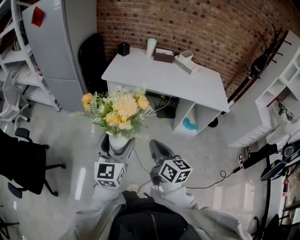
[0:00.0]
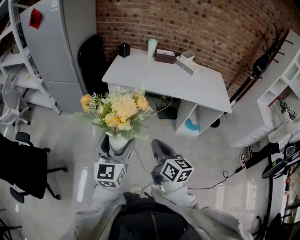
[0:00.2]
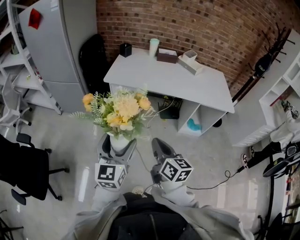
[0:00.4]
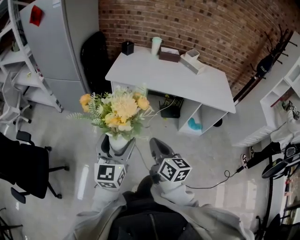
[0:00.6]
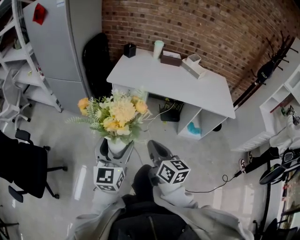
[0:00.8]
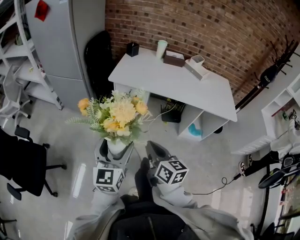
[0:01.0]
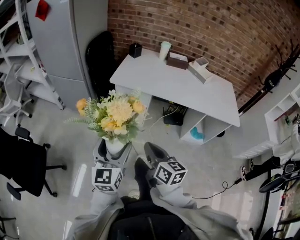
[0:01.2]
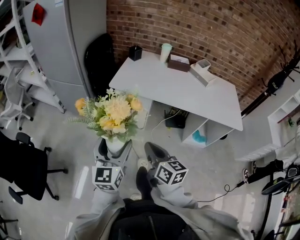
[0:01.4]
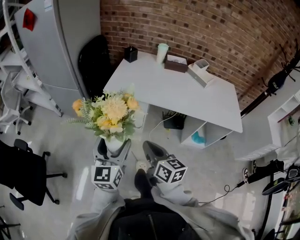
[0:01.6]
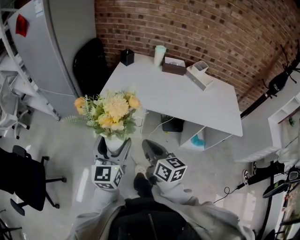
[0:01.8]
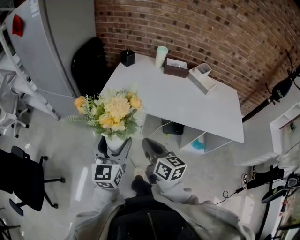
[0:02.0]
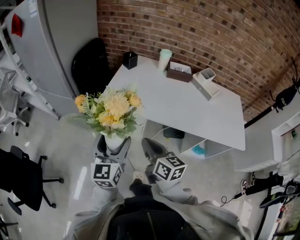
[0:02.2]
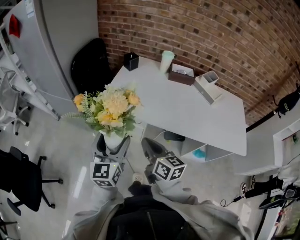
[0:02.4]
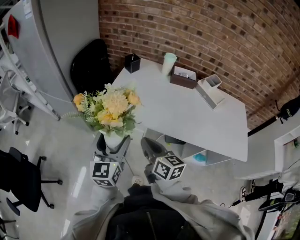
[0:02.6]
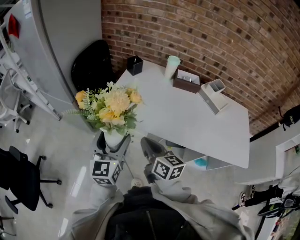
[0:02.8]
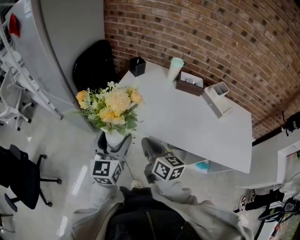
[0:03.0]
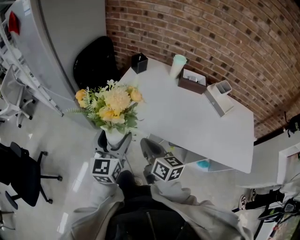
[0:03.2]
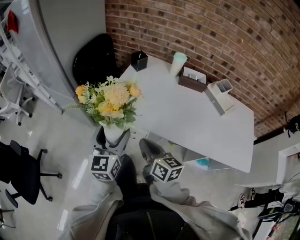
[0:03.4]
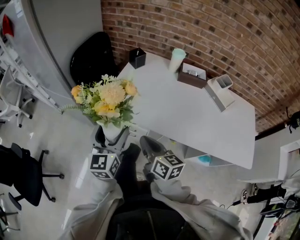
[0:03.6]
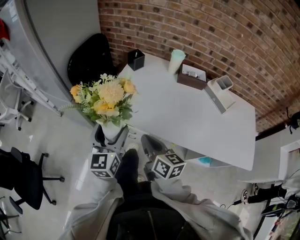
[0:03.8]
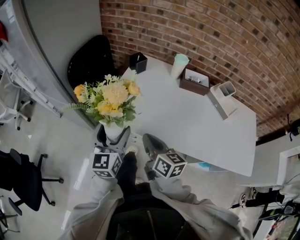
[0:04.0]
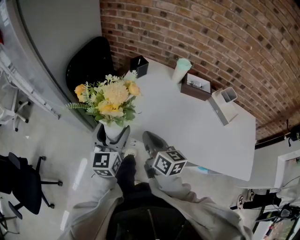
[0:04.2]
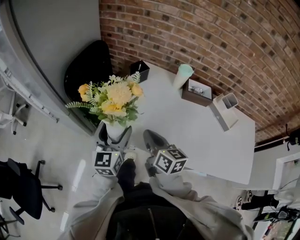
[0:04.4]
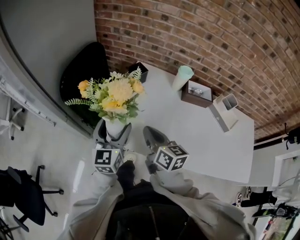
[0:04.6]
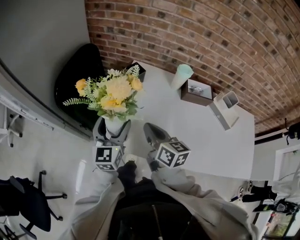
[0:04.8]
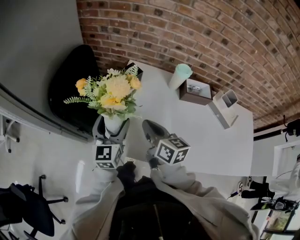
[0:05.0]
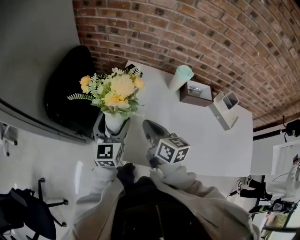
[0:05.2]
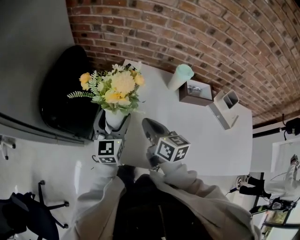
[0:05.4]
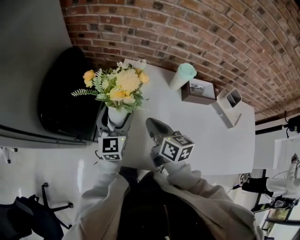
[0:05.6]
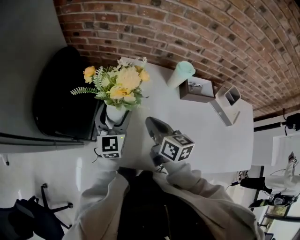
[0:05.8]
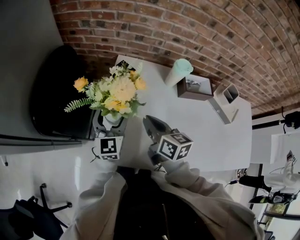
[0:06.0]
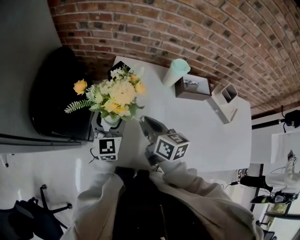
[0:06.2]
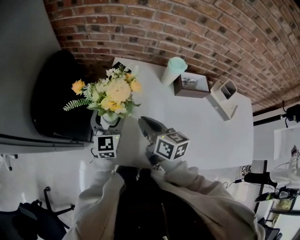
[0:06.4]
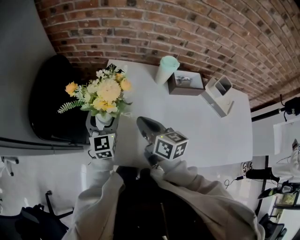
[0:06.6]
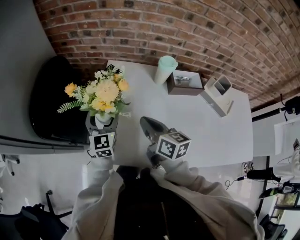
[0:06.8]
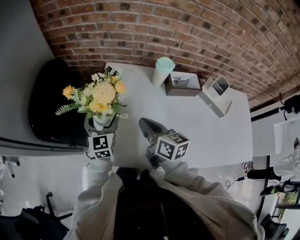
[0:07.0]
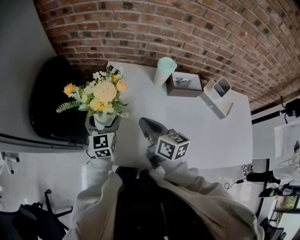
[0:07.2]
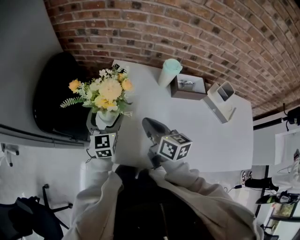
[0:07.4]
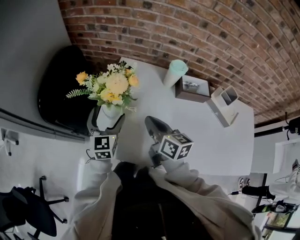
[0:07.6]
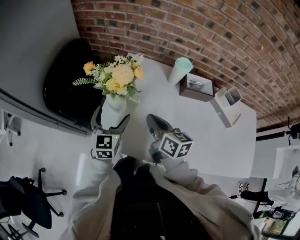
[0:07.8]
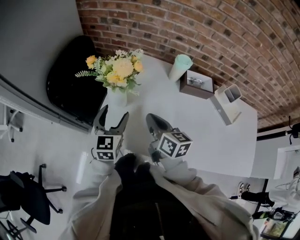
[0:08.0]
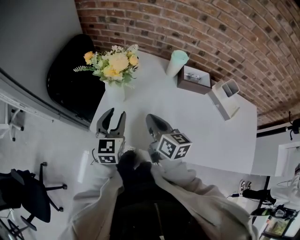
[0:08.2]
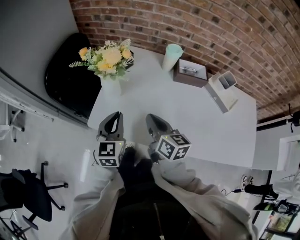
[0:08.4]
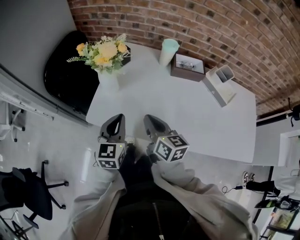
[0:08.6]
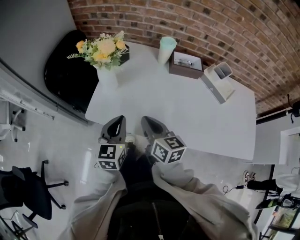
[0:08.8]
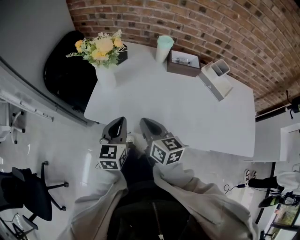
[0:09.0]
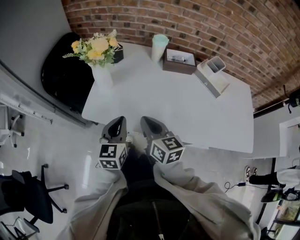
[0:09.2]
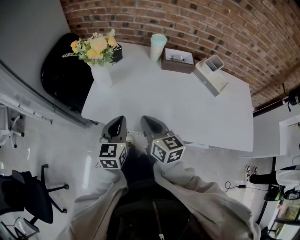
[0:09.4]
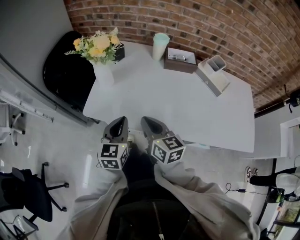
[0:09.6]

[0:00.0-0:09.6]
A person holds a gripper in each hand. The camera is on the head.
0:00.0 to 0:01.6: Both grippers travel together forward, approximately 20 cm.
0:01.6 to 0:03.2: The two grippers go some 25 cm forward.
0:03.2 to 0:04.8: The two grippers go approximately 30 cm forward.
0:04.8 to 0:06.4: The left gripper moves forward and downward, some 15 cm. Meanwhile the right gripper is displaced forward by roughly 10 cm.
0:06.4 to 0:08.0: The right gripper shifts some 10 cm backward, while the left gripper goes approximately 10 cm backward.
0:08.0 to 0:09.6: The right gripper shifts roughly 20 cm backward. The left gripper heads backward and to the right, covering roughly 20 cm, and closes.

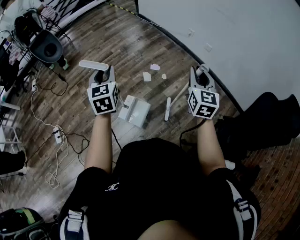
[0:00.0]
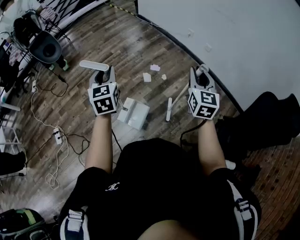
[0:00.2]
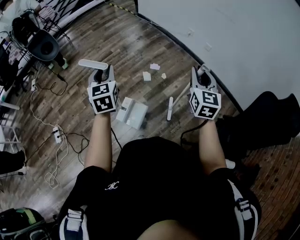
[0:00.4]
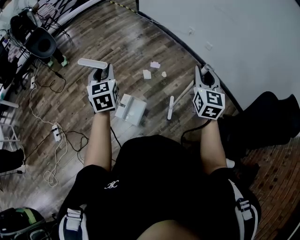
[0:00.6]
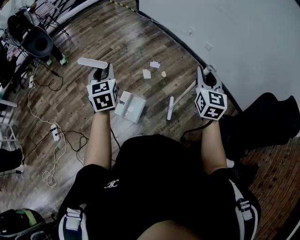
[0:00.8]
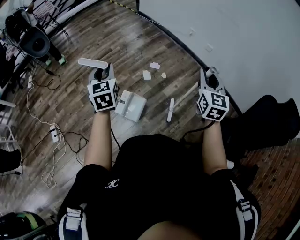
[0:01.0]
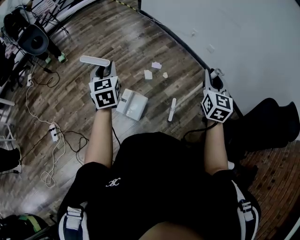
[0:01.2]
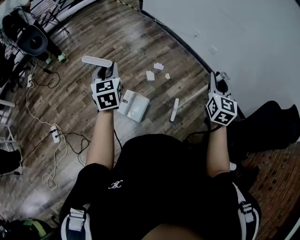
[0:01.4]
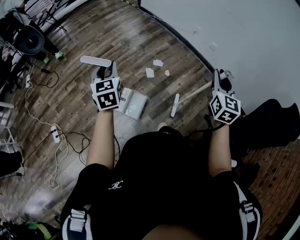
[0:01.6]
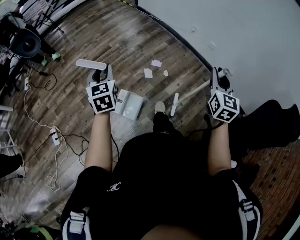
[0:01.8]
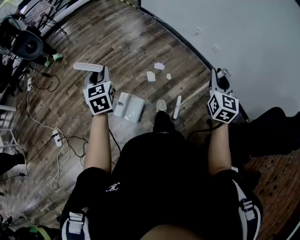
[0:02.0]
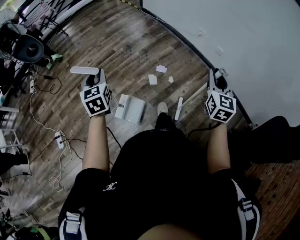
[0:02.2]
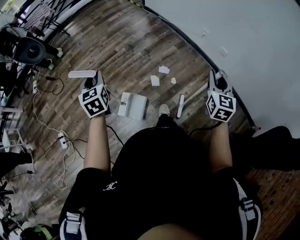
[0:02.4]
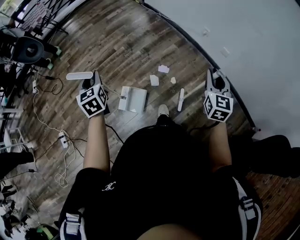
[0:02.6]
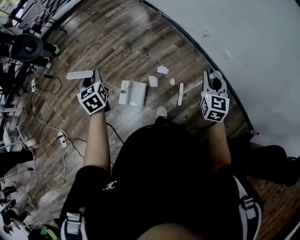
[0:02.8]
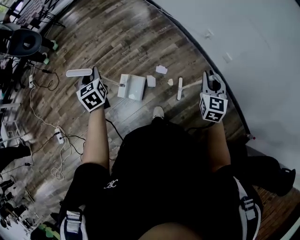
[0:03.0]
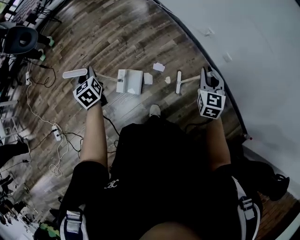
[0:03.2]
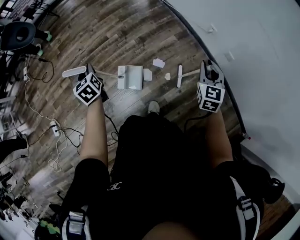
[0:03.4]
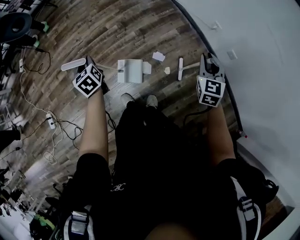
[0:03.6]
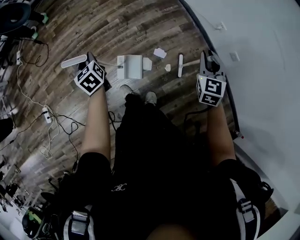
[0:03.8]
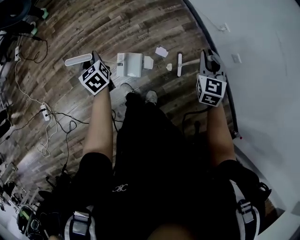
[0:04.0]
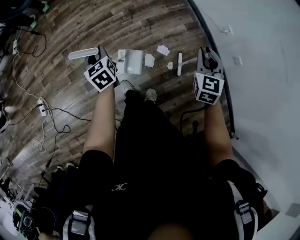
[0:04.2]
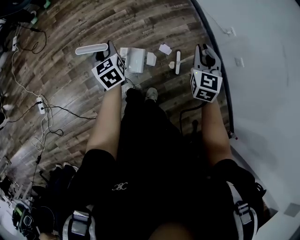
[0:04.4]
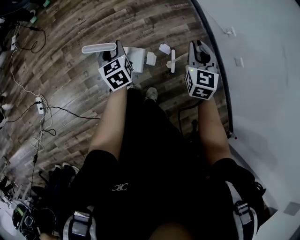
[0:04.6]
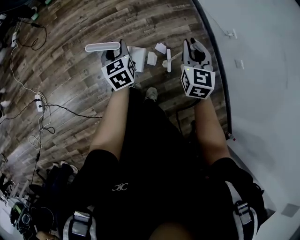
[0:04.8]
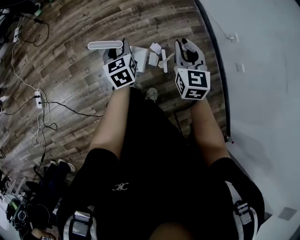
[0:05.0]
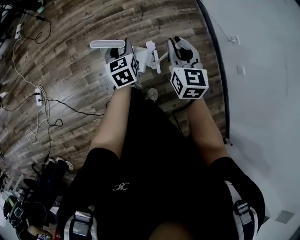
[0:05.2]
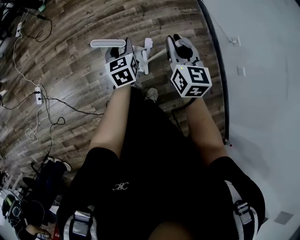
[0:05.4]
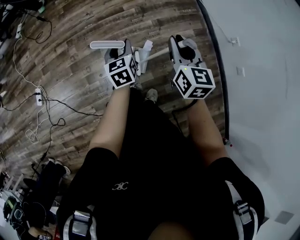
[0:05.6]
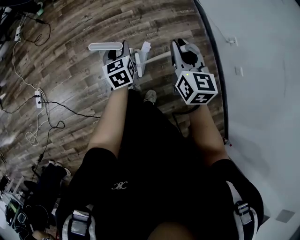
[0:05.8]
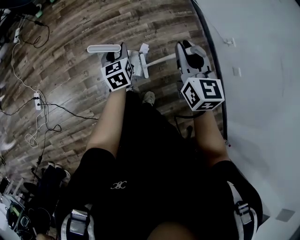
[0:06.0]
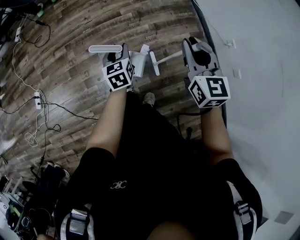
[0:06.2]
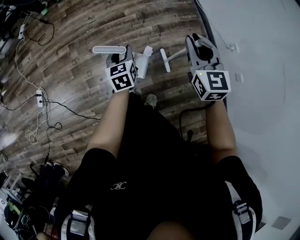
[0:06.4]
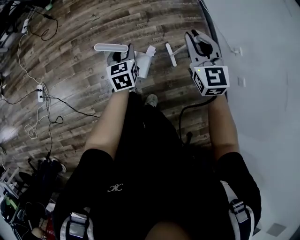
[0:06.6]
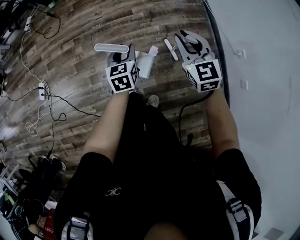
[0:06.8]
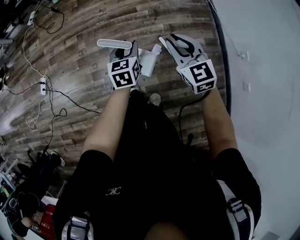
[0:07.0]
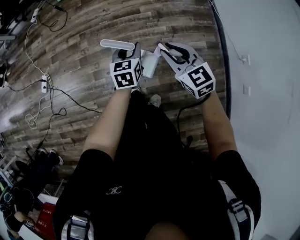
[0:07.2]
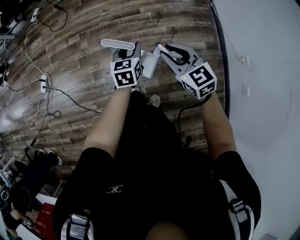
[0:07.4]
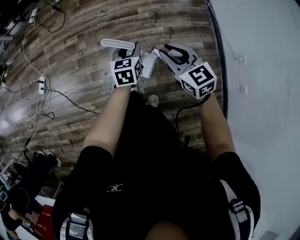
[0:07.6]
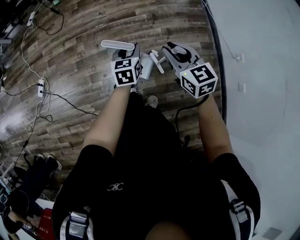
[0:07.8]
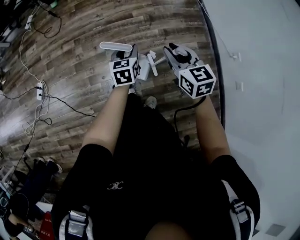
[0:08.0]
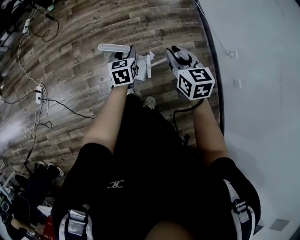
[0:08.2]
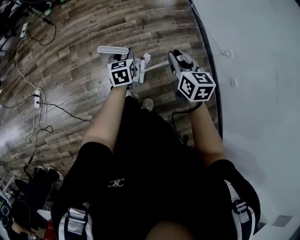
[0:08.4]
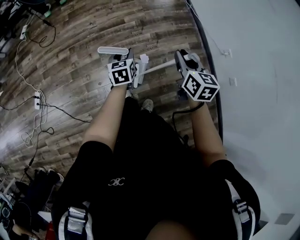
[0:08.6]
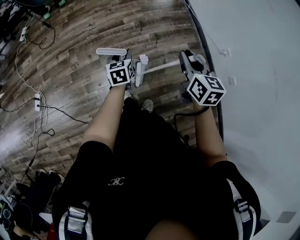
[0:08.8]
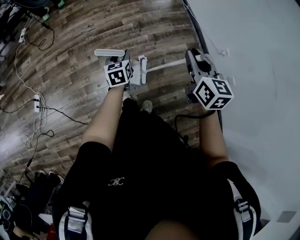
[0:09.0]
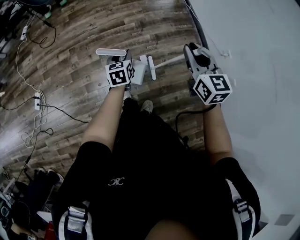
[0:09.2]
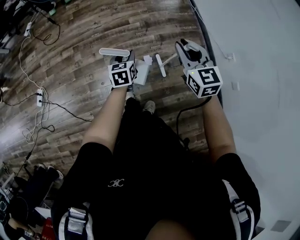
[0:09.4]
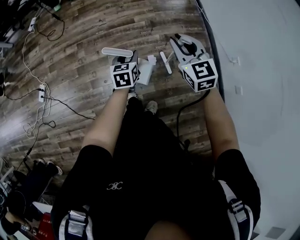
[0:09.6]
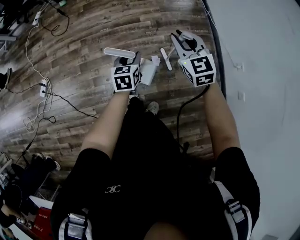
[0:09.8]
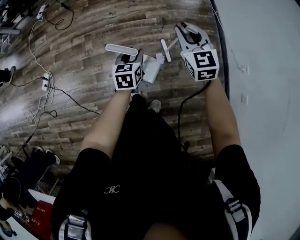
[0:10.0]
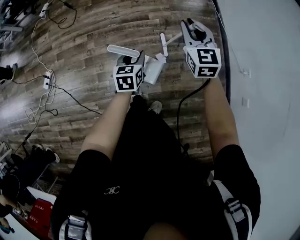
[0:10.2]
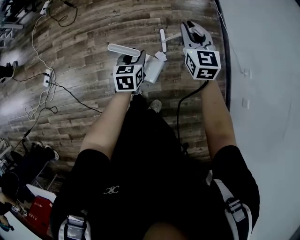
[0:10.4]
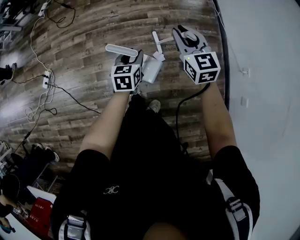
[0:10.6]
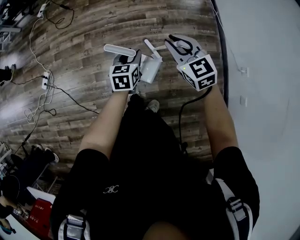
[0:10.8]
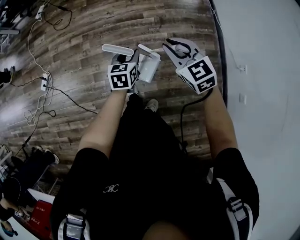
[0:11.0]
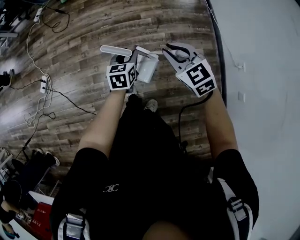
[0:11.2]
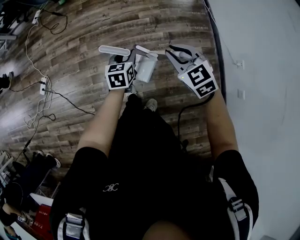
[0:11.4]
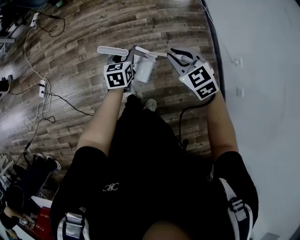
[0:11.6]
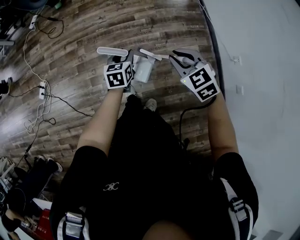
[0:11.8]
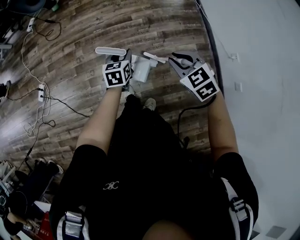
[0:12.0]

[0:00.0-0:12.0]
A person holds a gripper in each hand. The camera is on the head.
0:00.0 to 0:01.6: The left gripper heads to the left and forward, covering roughly 10 cm.
0:01.6 to 0:03.0: The right gripper moves forward and downward, roughly 35 cm, while the left gripper is displaced forward by roughly 30 cm, and changes its angle by roughly 20 degrees.
0:03.0 to 0:04.4: The left gripper travels downward and forward by some 20 cm. Meanwhile the right gripper is displaced forward, to the left and downward by some 25 cm.
0:04.4 to 0:06.0: The right gripper is displaced to the left and upward by approximately 15 cm, and rotates approximately 30 degrees.
0:06.0 to 0:07.6: The right gripper goes some 10 cm to the left and downward, and turns by approximately 40 degrees.
0:07.6 to 0:09.0: The right gripper is displaced to the right and upward by approximately 15 cm, and swivels some 40 degrees.
0:09.0 to 0:10.4: The right gripper goes some 20 cm forward, downward and to the left, and rotates about 20 degrees.
0:10.4 to 0:12.0: The right gripper heads backward, covering approximately 15 cm, and turns by approximately 40 degrees.

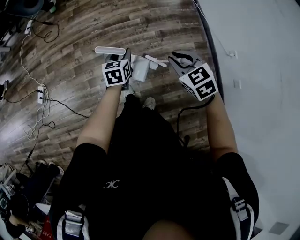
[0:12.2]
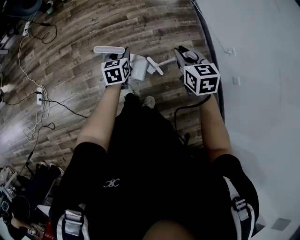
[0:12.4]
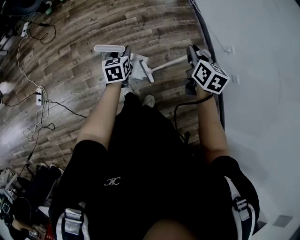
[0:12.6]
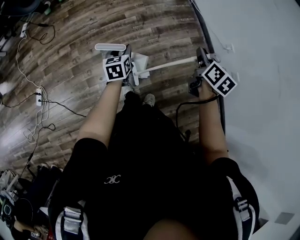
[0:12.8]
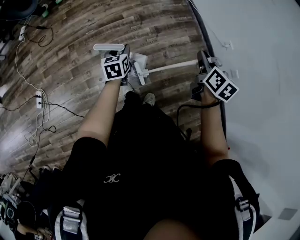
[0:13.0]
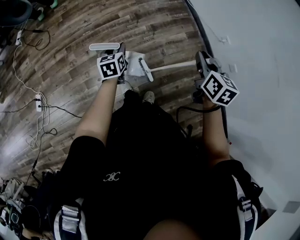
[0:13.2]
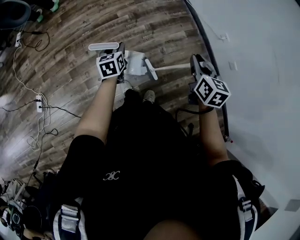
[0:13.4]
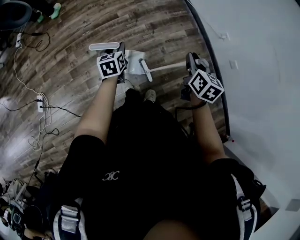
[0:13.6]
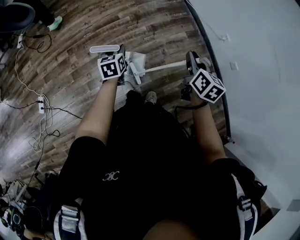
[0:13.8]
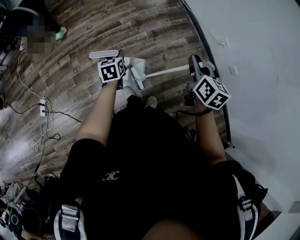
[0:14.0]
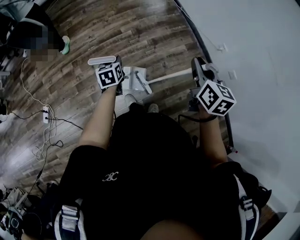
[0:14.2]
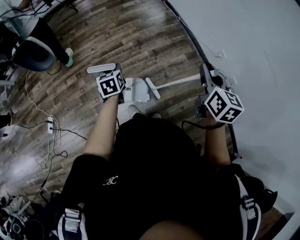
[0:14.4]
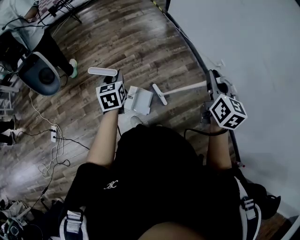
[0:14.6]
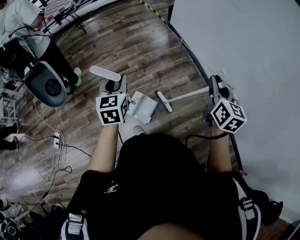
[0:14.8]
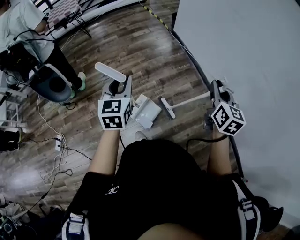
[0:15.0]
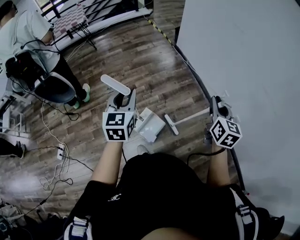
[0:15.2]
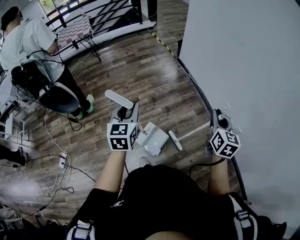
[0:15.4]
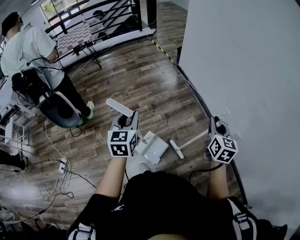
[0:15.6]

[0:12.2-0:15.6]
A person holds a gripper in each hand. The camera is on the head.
0:12.2 to 0:13.8: The right gripper ends up approximately 10 cm from where it was, and twists some 60 degrees clockwise, seen from behind.
0:13.8 to 0:15.6: The left gripper goes about 30 cm upward, and changes its angle by about 30 degrees. The right gripper moves upward and to the right, roughly 15 cm, and changes its angle by about 20 degrees.
